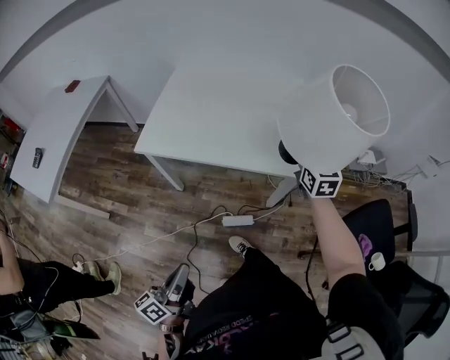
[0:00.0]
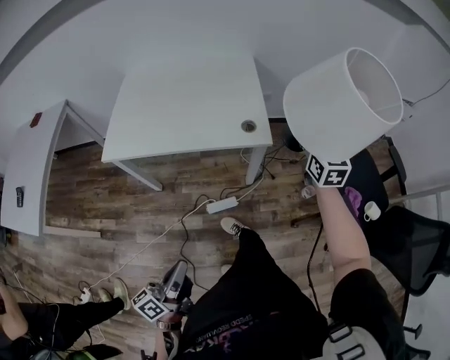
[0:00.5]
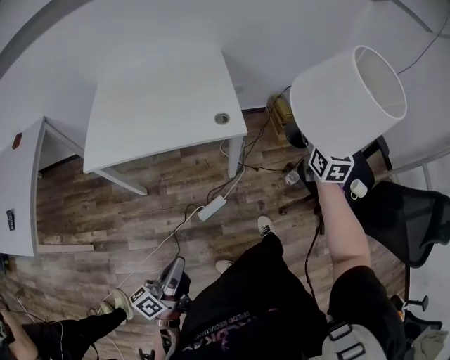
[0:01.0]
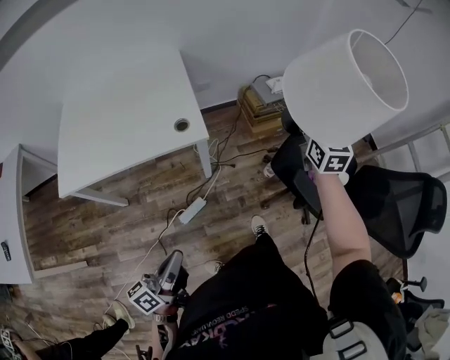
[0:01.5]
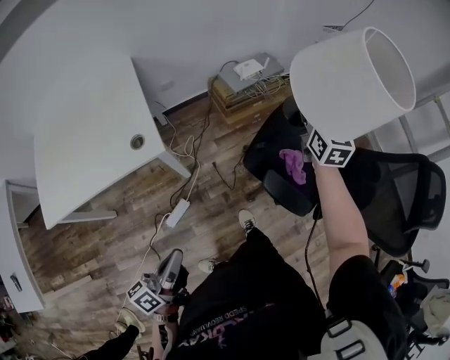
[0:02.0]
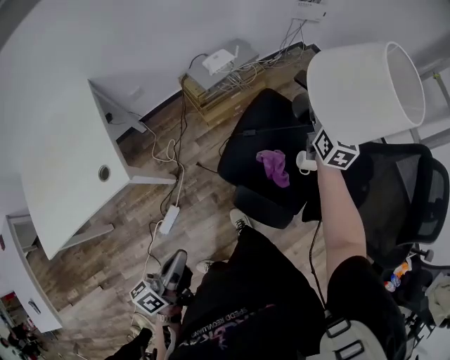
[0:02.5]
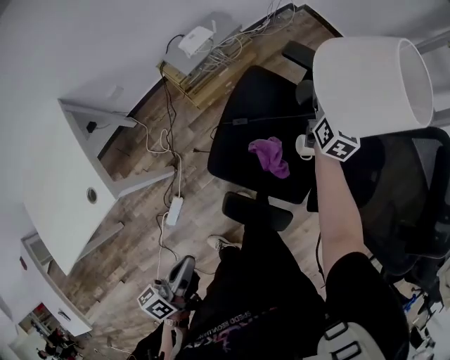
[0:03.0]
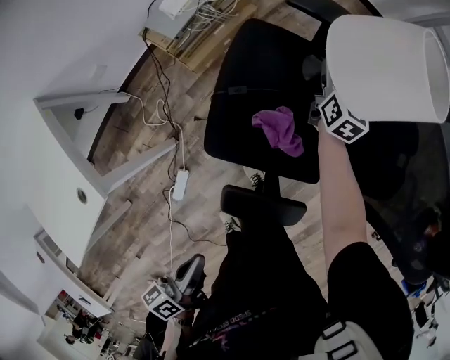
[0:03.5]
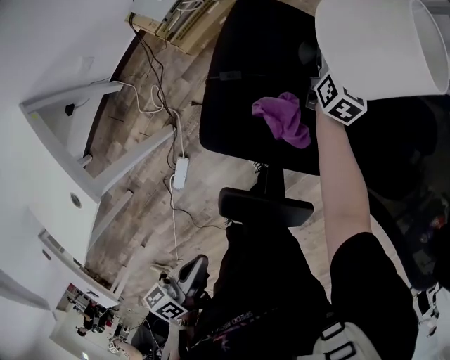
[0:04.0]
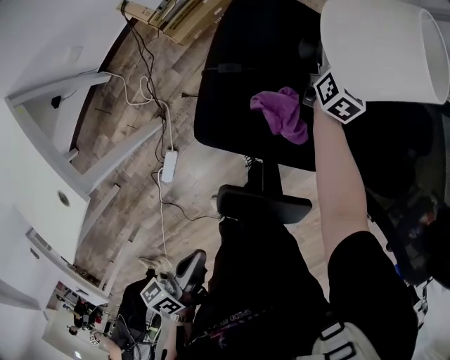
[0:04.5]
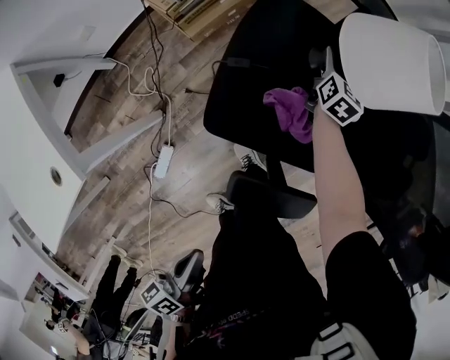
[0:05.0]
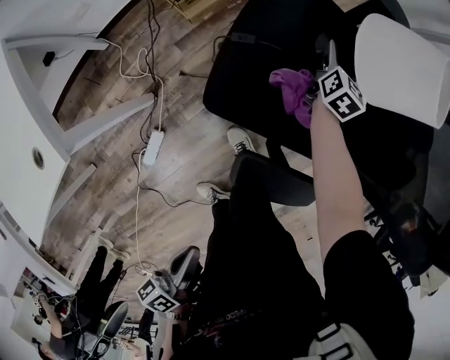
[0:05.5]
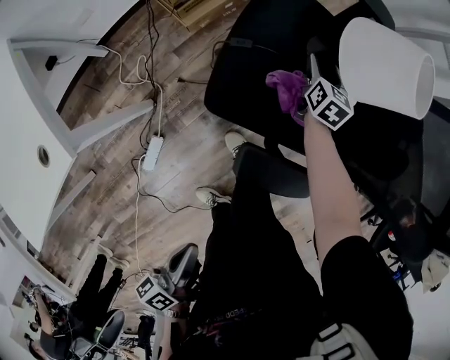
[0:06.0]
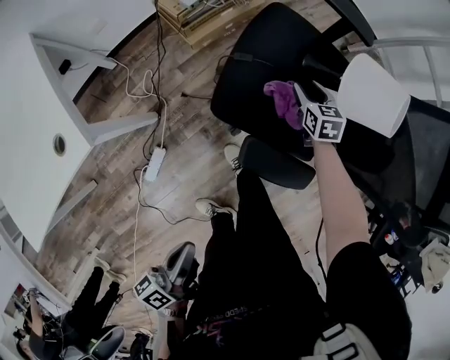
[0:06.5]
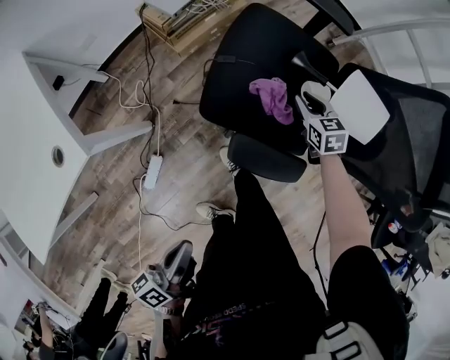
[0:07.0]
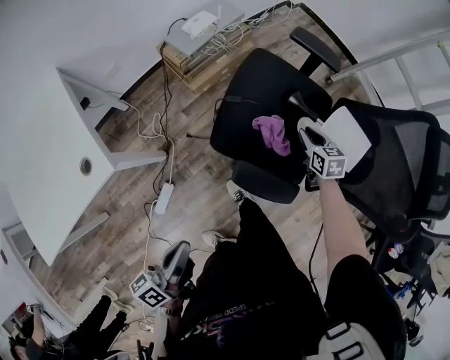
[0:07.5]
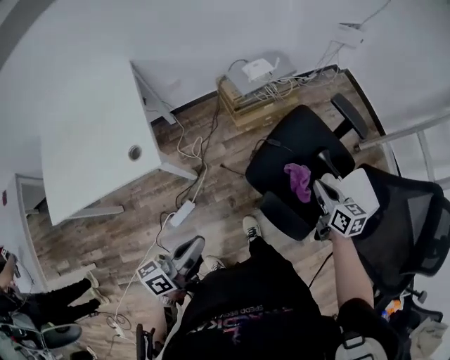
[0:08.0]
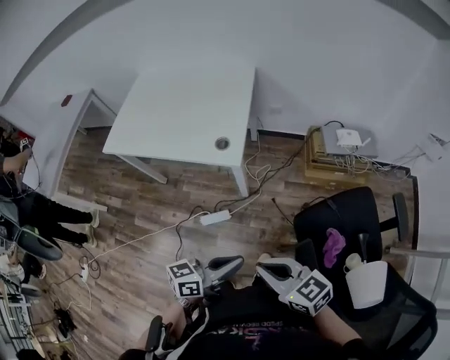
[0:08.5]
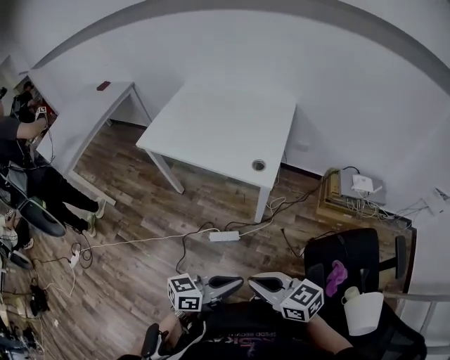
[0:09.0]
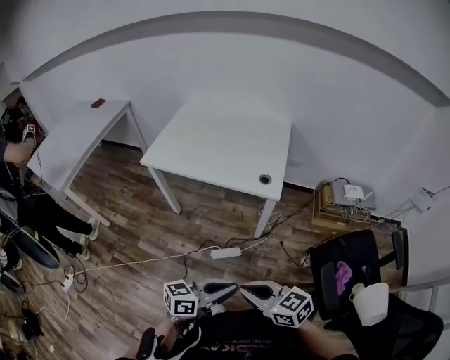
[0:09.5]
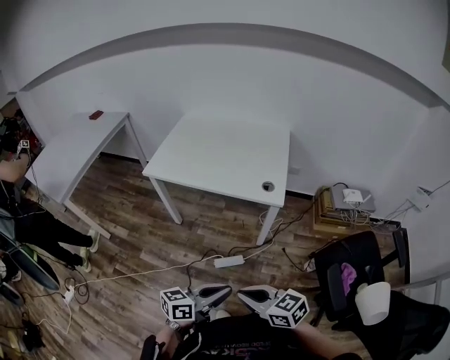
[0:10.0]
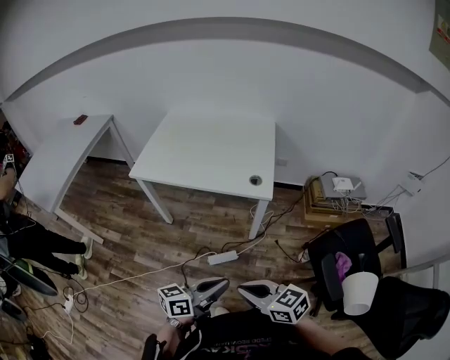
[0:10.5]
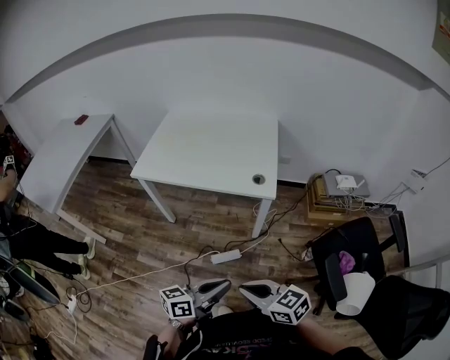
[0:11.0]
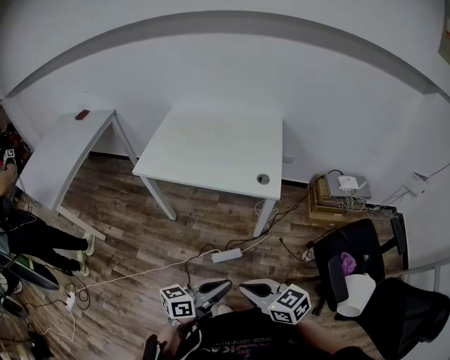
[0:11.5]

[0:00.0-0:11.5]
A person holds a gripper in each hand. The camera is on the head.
0:00.0 to 0:02.0: The left gripper changes place by about 30 cm, and changes its angle by approximately 40 degrees; the right gripper moves roughly 60 cm, and swivels roughly 40 degrees.
0:02.0 to 0:04.0: The left gripper changes place by about 30 cm, and rotates some 40 degrees; the right gripper goes approximately 40 cm downward, and turns by some 40 degrees.
0:04.0 to 0:06.0: The grippers both shift backward by about 10 cm. The right gripper opens.
0:06.0 to 0:07.5: The right gripper shifts about 15 cm backward and upward, rotates about 30 degrees, and closes its fingers; the left gripper heads upward, covering approximately 10 cm.
0:07.5 to 0:09.5: The right gripper moves some 70 cm, and swivels about 90 degrees. The left gripper moves about 20 cm, and turns by about 30 degrees.
0:09.5 to 0:11.5: The left gripper changes place by approximately 5 cm.

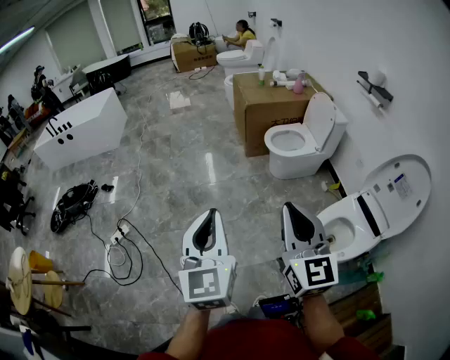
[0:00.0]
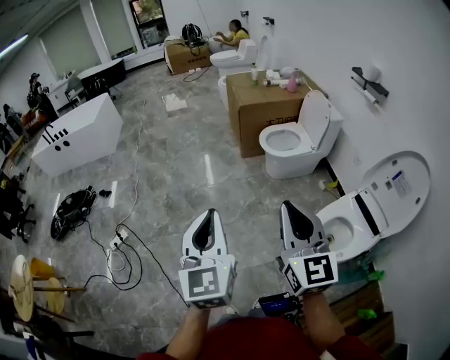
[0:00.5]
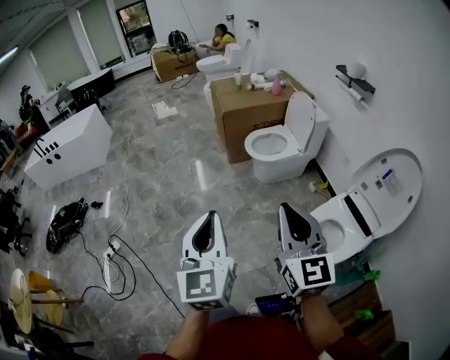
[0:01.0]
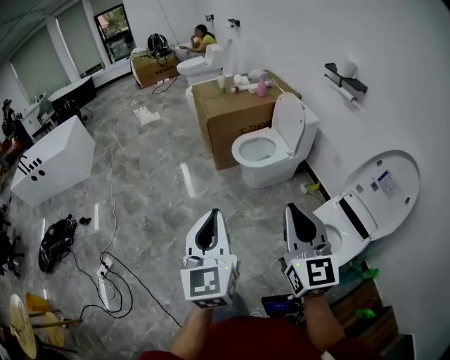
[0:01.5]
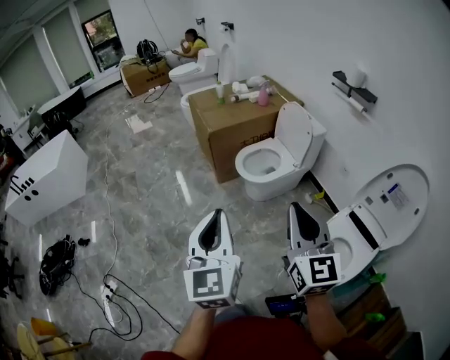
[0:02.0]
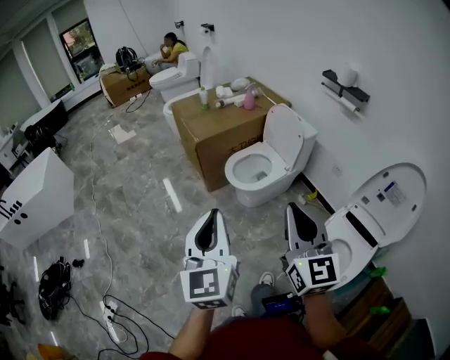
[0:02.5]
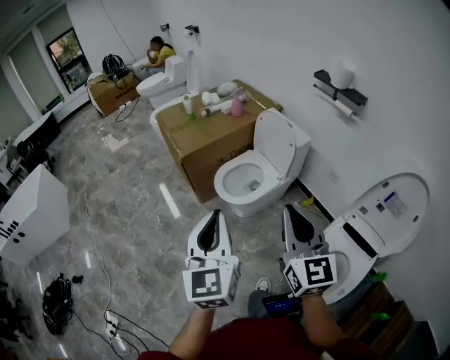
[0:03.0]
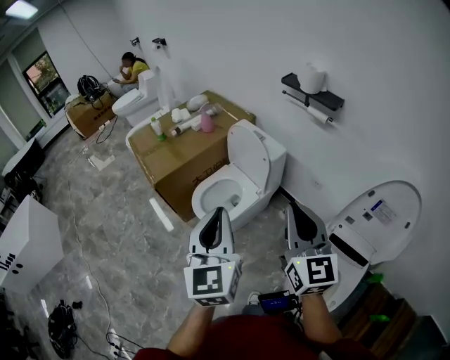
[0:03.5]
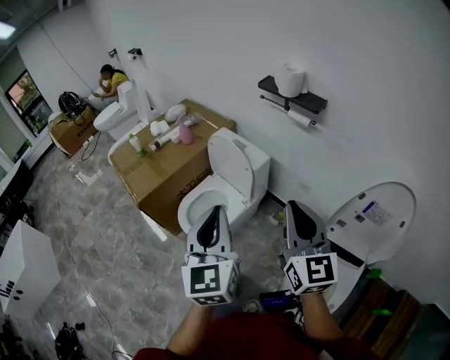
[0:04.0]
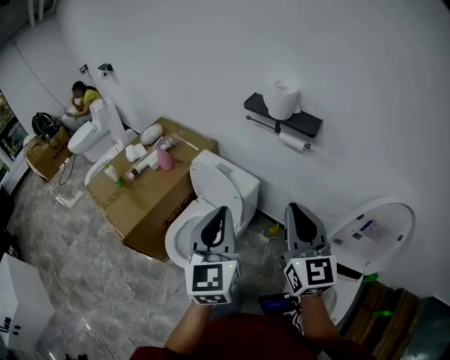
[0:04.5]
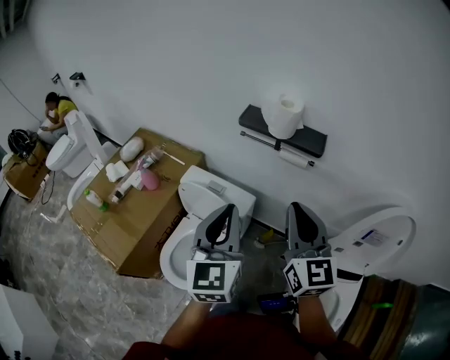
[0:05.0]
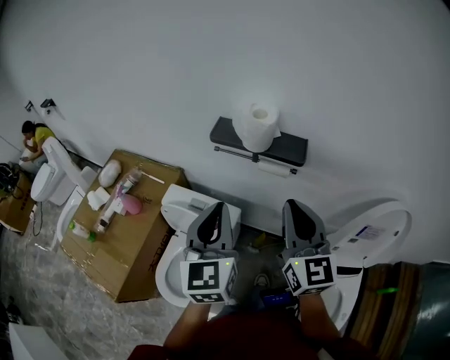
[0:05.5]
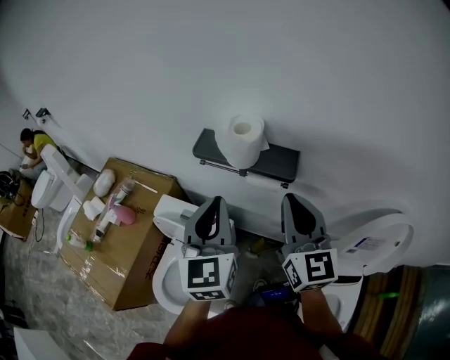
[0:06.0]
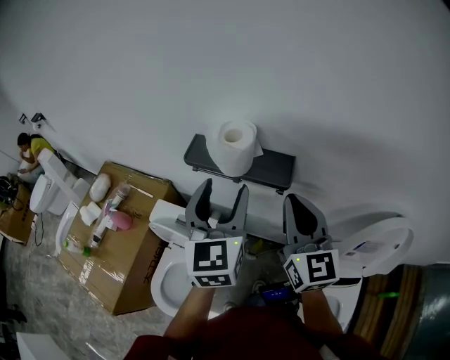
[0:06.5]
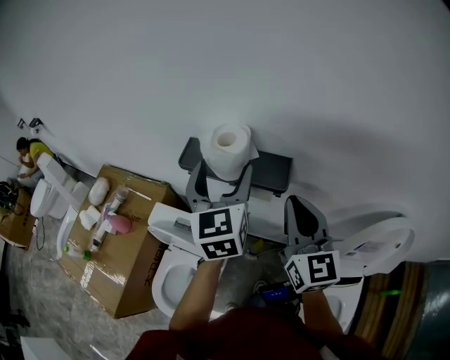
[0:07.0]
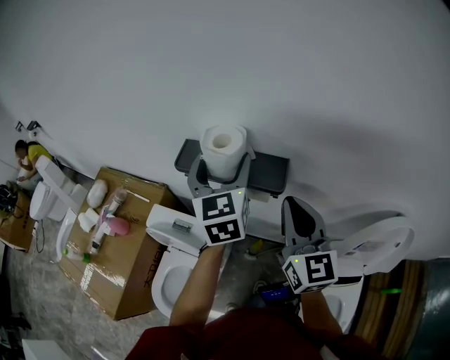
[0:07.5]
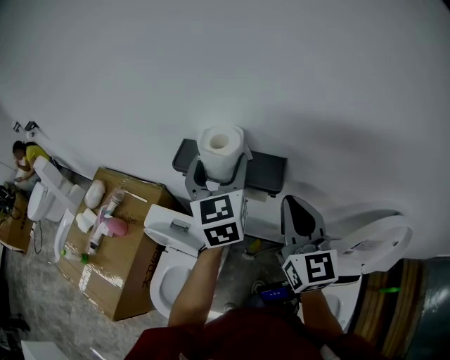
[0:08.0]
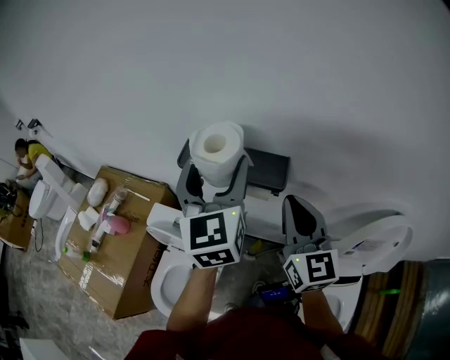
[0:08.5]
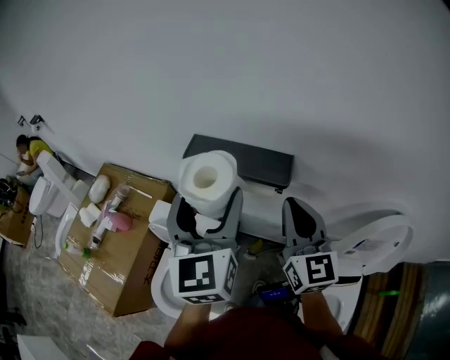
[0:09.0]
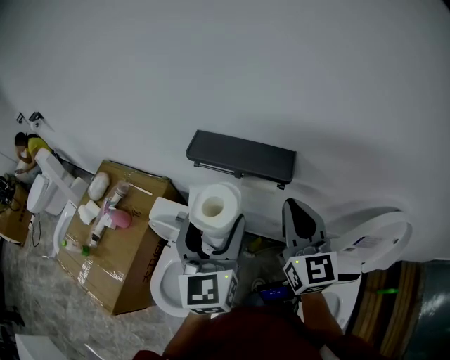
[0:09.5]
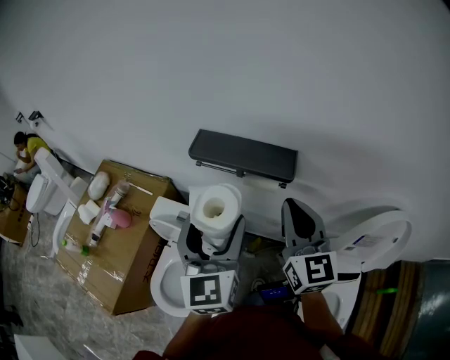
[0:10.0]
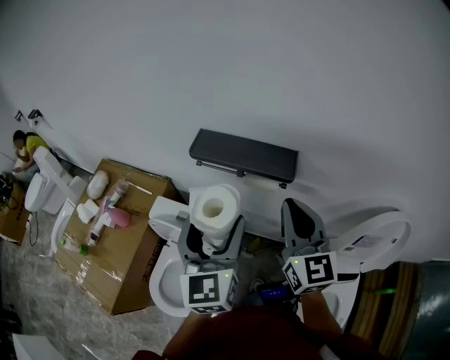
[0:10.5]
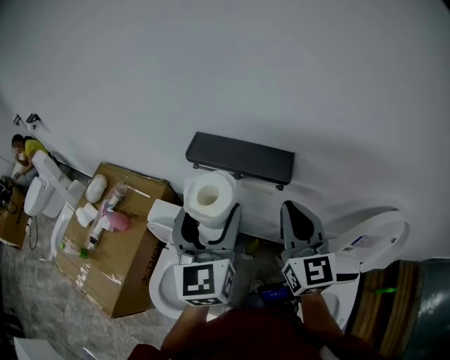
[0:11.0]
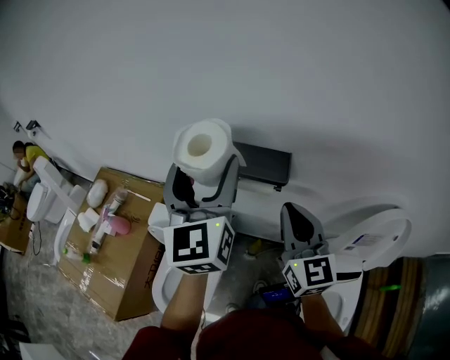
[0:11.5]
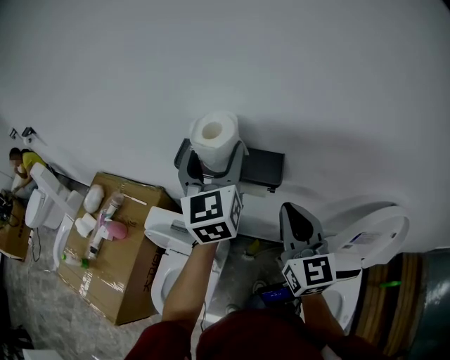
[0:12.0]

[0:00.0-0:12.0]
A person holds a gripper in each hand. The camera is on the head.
0:00.0 to 0:02.0: Both grippers move forward, approximately 30 cm.
0:02.0 to 0:04.0: The two grippers travel together, forward and to the right, roughly 50 cm. The left gripper changes its angle by about 20 degrees. Meanwhile the right gripper rotates approximately 20 degrees.
0:04.0 to 0:06.0: Both grippers are carried forward, some 40 cm. The right gripper turns by roughly 20 degrees, while the left gripper changes its angle by roughly 30 degrees.
0:06.0 to 0:08.0: The right gripper goes approximately 5 cm to the right, while the left gripper heads forward and to the right, covering some 15 cm, and opens up.
0:08.0 to 0:10.0: The right gripper changes place by approximately 5 cm. Meanwhile the left gripper shifts approximately 20 cm backward and to the left.
0:10.0 to 0:12.0: The left gripper moves forward and upward, approximately 15 cm.

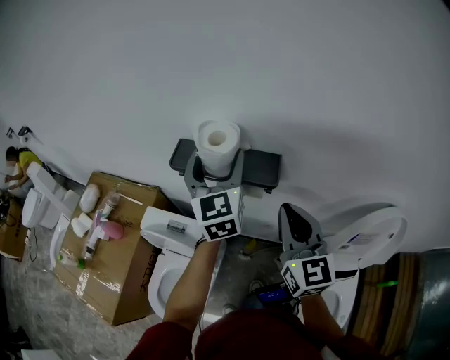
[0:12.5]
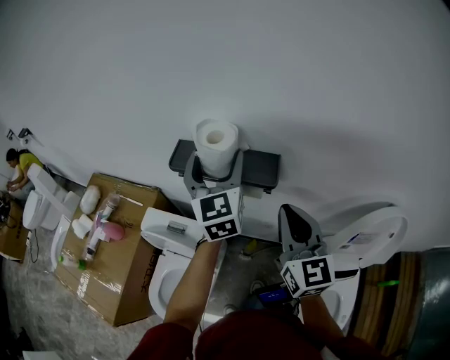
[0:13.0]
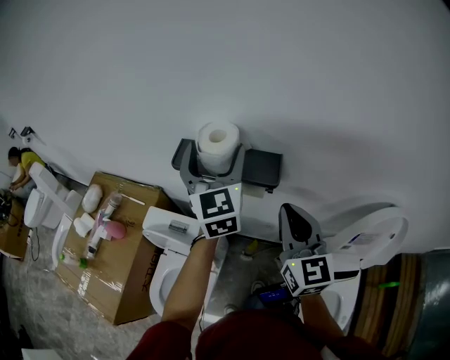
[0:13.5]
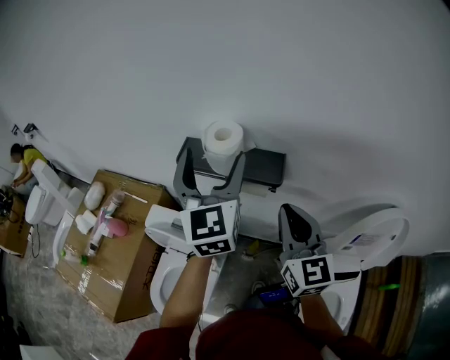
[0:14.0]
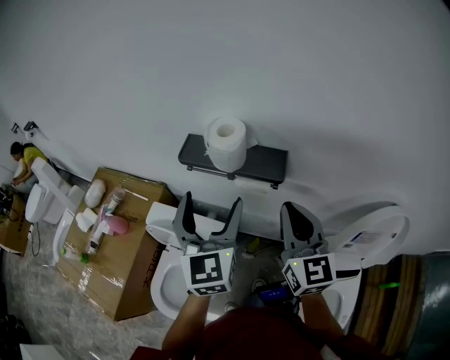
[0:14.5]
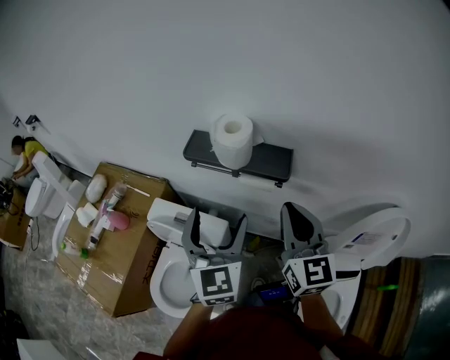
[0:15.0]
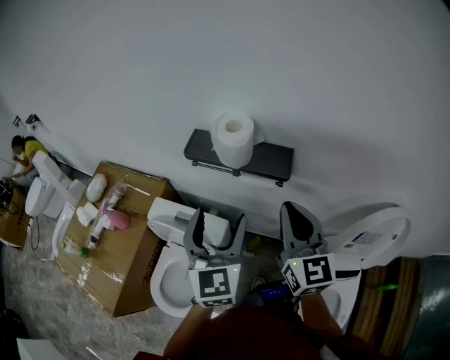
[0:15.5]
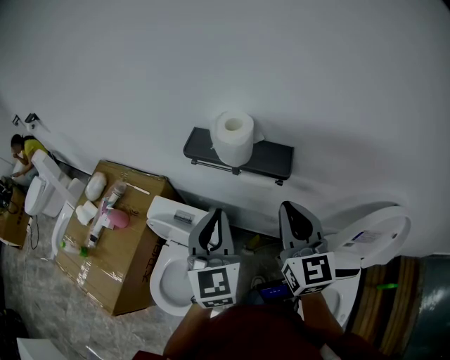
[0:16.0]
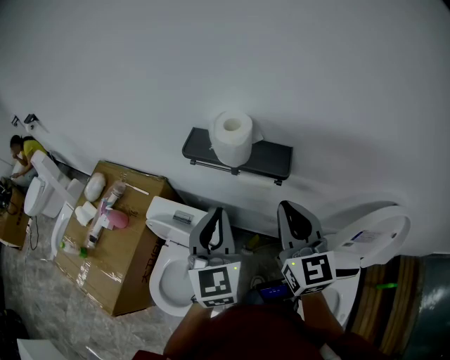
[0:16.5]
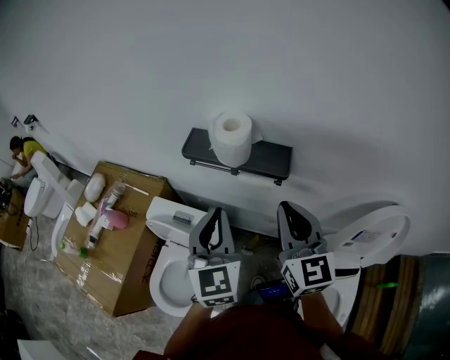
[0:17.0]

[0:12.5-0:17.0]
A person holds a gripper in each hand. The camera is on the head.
0:12.5 to 0:14.5: The left gripper heads backward, covering roughly 10 cm.
0:14.5 to 0:17.0: The left gripper closes its fingers.
